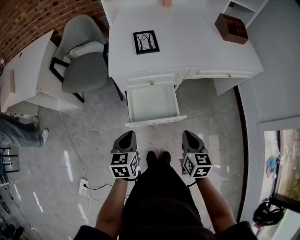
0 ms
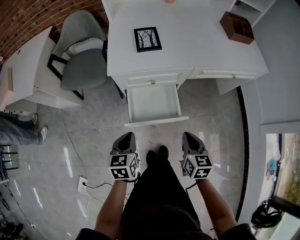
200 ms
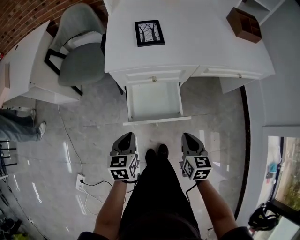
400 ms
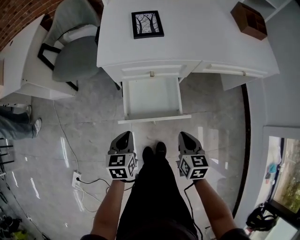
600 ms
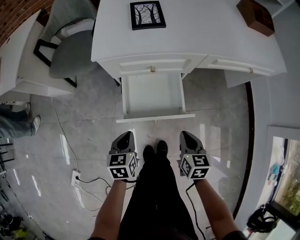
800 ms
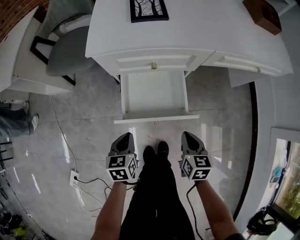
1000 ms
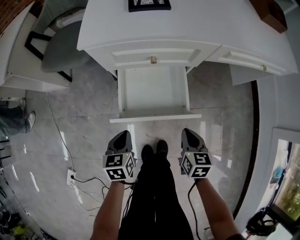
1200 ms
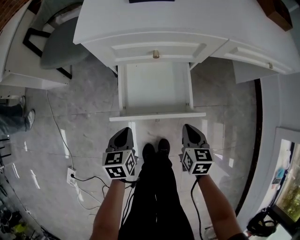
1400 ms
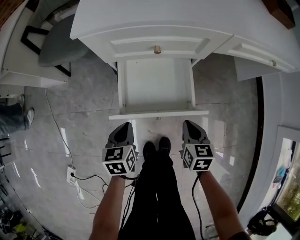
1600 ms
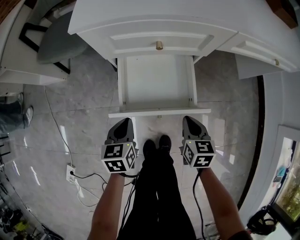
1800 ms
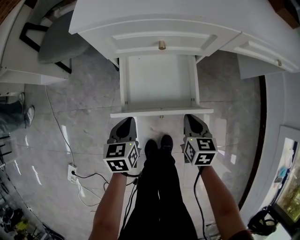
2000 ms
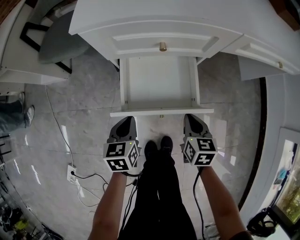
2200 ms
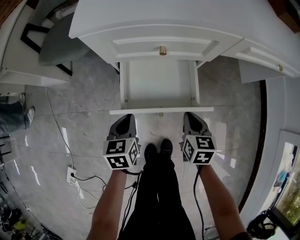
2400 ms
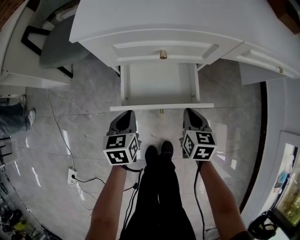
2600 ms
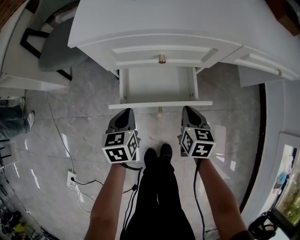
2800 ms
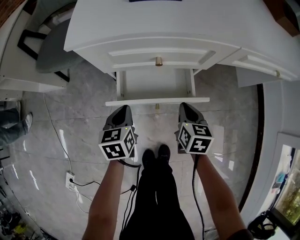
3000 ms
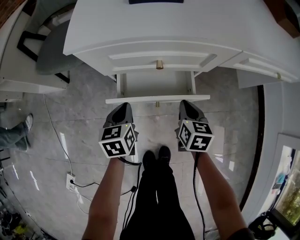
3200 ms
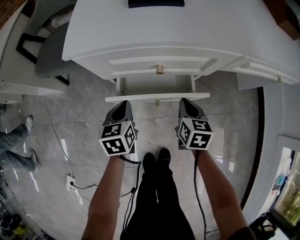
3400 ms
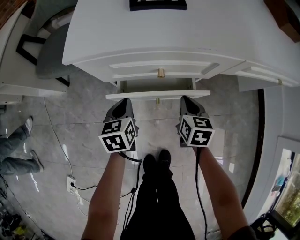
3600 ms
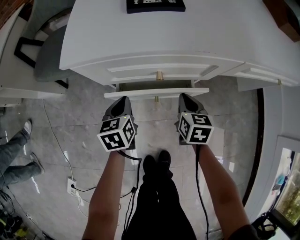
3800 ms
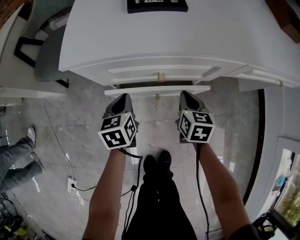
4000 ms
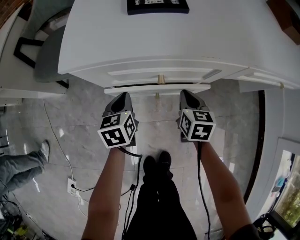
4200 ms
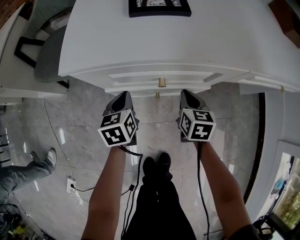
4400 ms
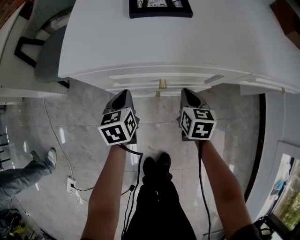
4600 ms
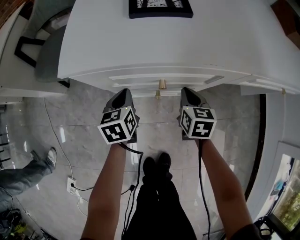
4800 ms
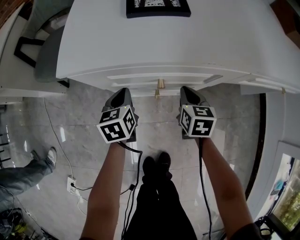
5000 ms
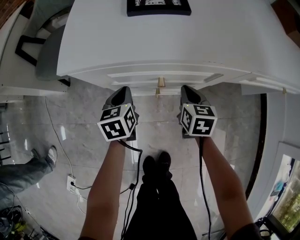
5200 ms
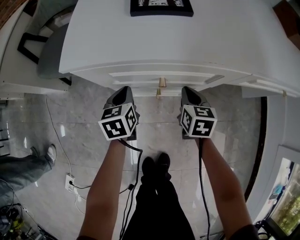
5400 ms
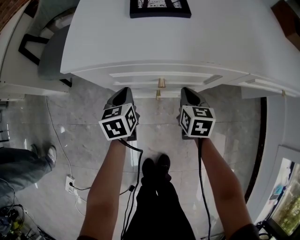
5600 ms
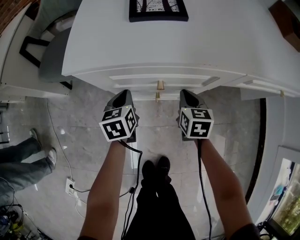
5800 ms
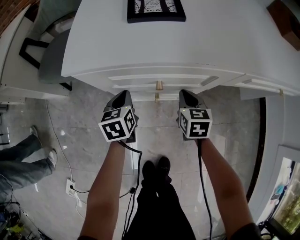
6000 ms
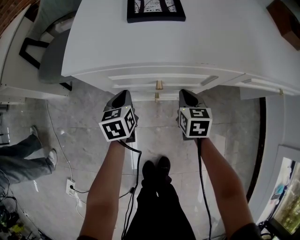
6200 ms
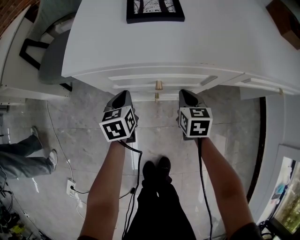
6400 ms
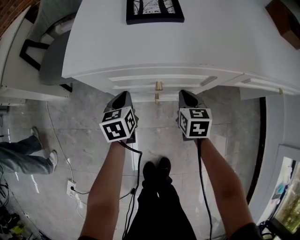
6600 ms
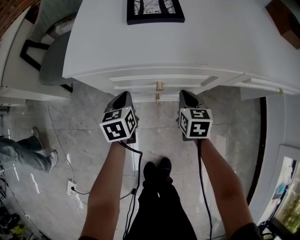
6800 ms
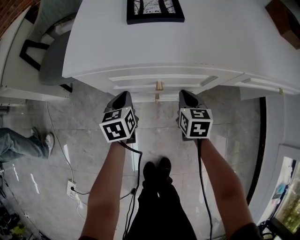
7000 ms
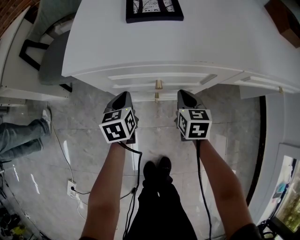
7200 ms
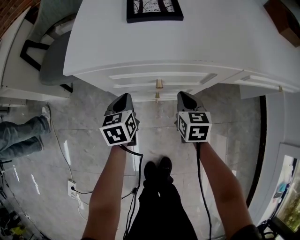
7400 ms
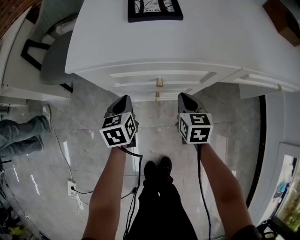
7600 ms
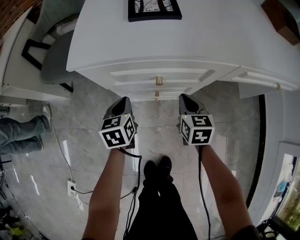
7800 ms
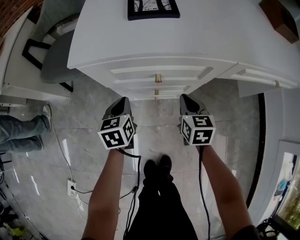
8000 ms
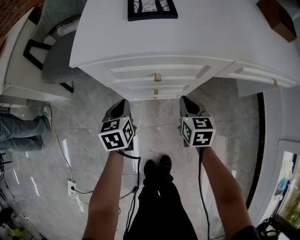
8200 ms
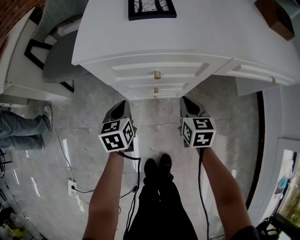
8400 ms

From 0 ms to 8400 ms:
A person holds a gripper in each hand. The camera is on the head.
From 0 ms to 1400 ms: Both grippers travel together downward, roughly 25 cm.
From 1400 ms to 2800 ms: The grippers both shift forward by approximately 10 cm.
From 2800 ms to 4200 ms: Both grippers travel together forward, approximately 10 cm.
From 4200 ms to 5600 ms: The grippers stay close to where they were, moving slightly.
From 5600 ms to 7000 ms: Neither gripper changes place.
From 7000 ms to 8400 ms: The two grippers go about 5 cm backward.

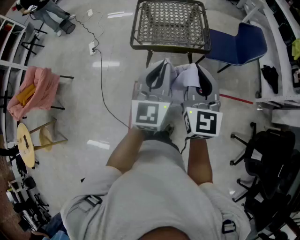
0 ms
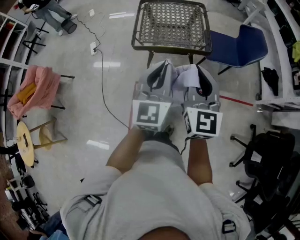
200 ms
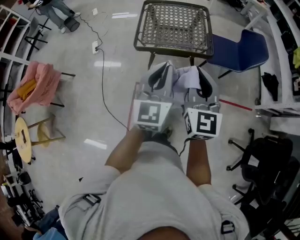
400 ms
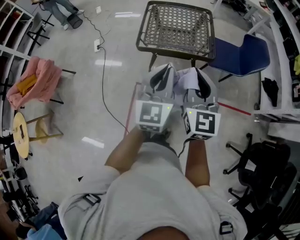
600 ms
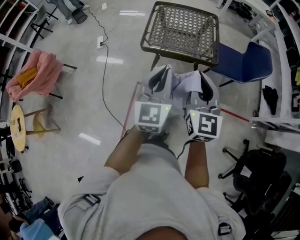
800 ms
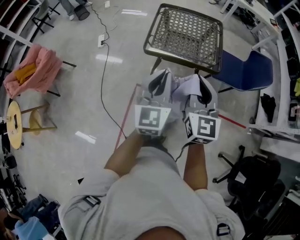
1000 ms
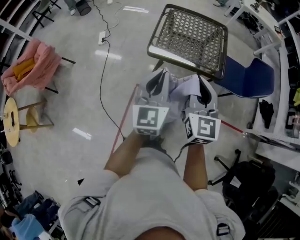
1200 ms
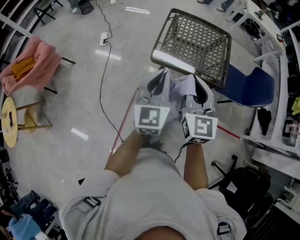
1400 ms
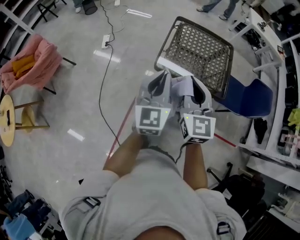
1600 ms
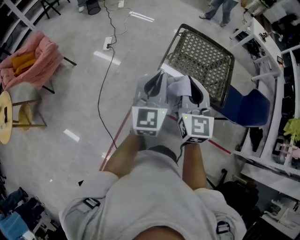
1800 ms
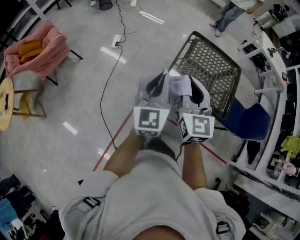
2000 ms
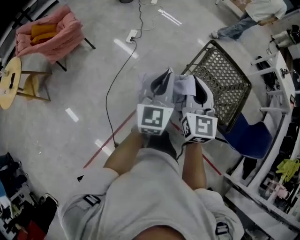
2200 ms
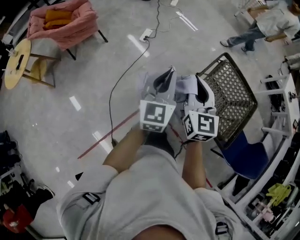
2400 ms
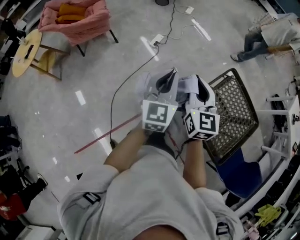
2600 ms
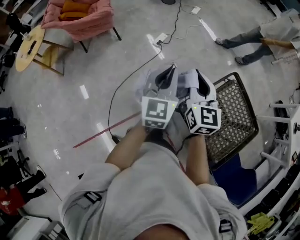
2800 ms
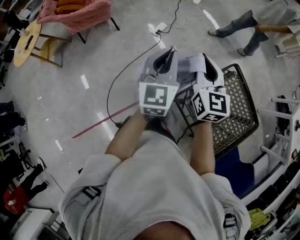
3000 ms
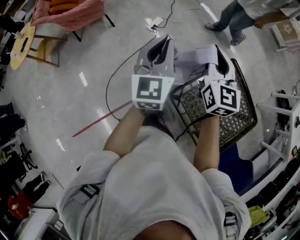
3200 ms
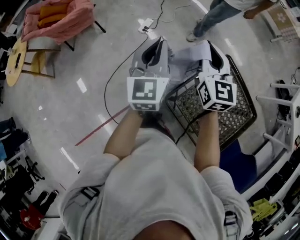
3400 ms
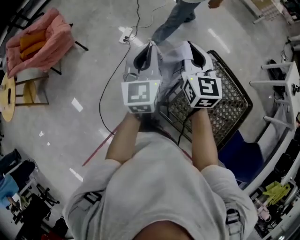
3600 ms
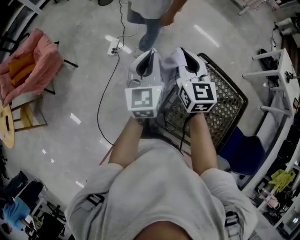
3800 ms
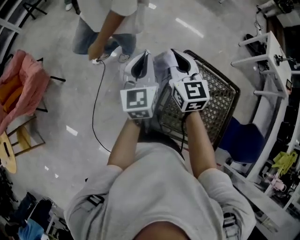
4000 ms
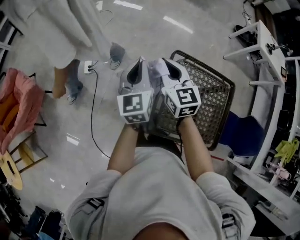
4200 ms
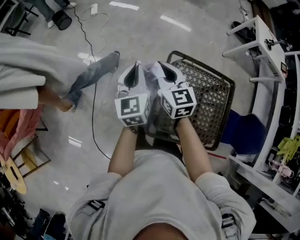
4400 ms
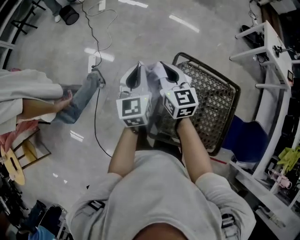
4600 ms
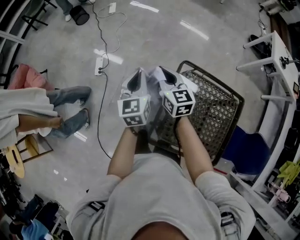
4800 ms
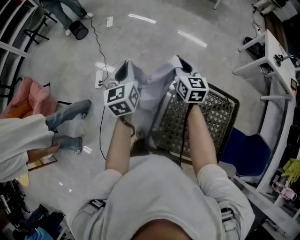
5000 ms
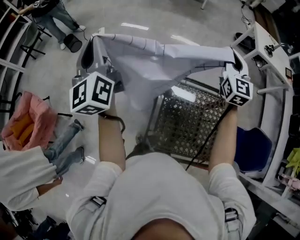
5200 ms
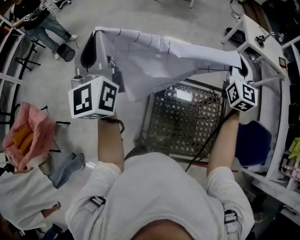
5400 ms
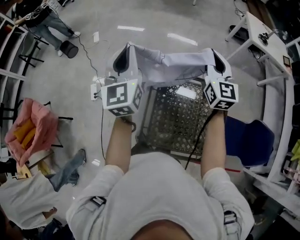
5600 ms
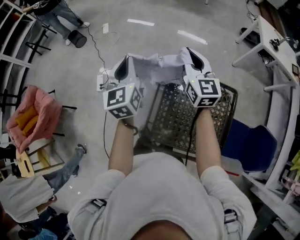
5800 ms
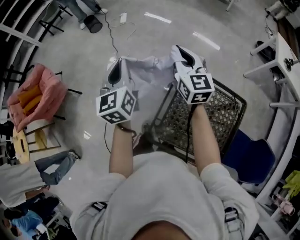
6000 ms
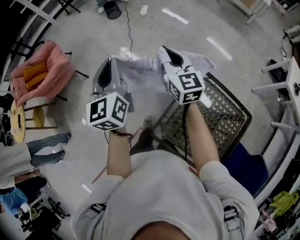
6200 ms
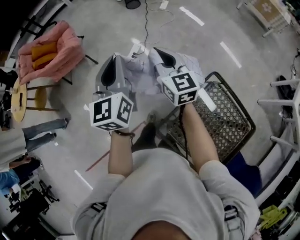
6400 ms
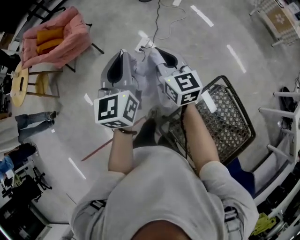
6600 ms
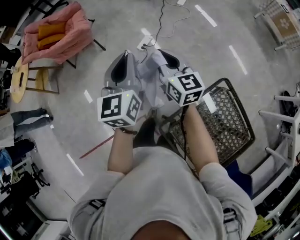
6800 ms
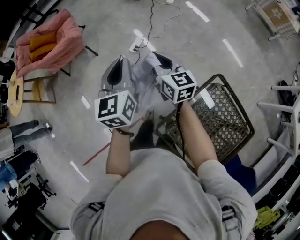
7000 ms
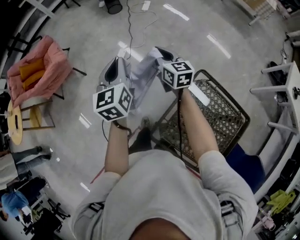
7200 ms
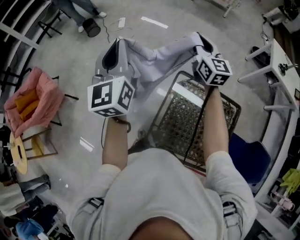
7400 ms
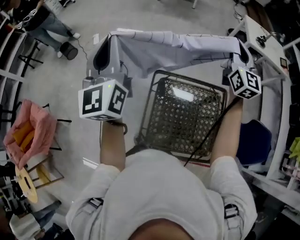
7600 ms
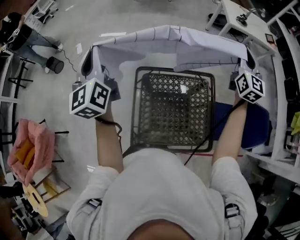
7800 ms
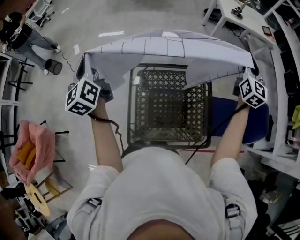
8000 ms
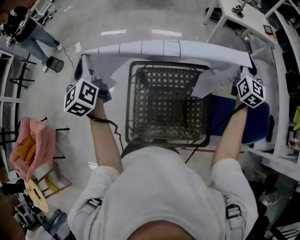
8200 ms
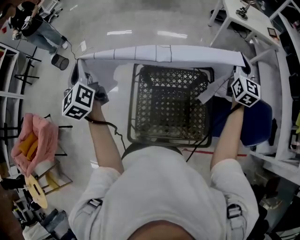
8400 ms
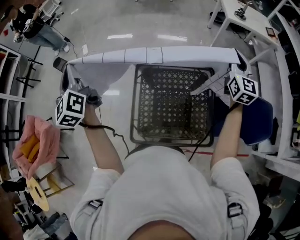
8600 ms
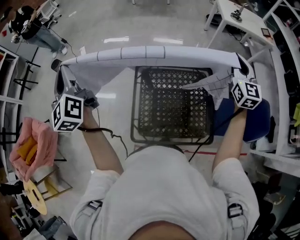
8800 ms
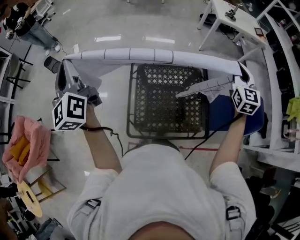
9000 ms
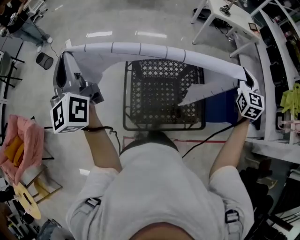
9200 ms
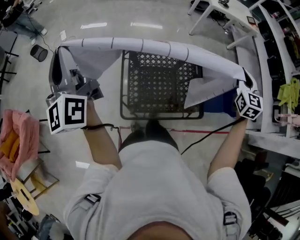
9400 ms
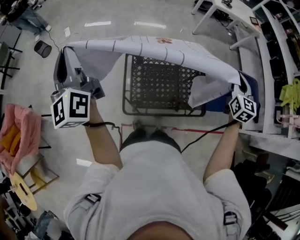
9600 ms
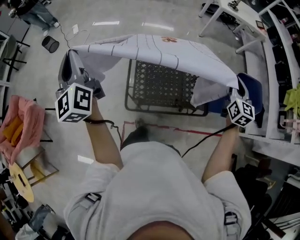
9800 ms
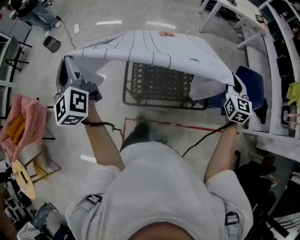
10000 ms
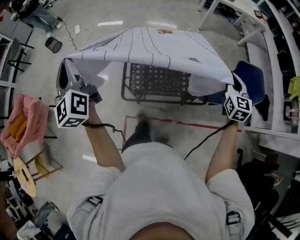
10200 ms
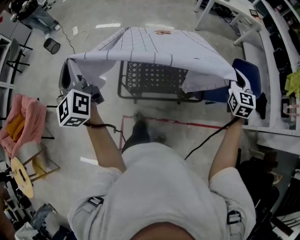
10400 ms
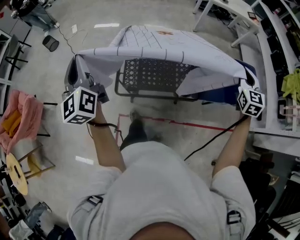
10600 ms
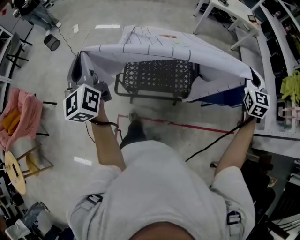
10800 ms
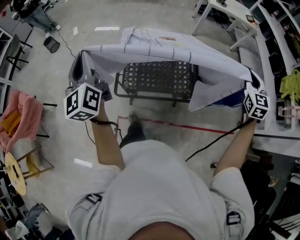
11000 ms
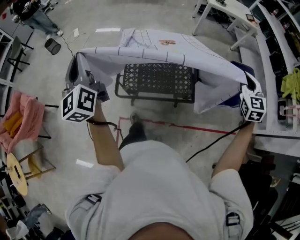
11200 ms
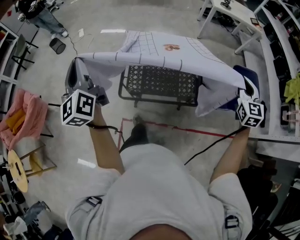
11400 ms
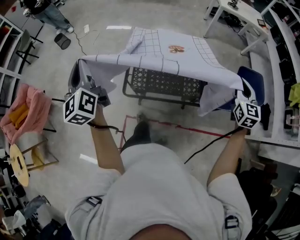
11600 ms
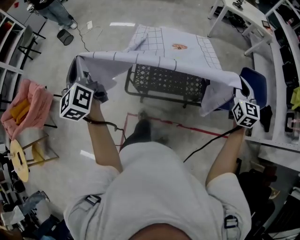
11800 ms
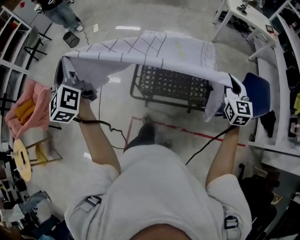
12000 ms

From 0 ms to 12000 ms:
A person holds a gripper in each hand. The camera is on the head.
From 0 ms to 1600 ms: The two grippers go approximately 25 cm to the left and forward.
From 1600 ms to 3000 ms: The right gripper moves about 35 cm, and rotates about 40 degrees. Meanwhile the left gripper moves roughly 30 cm, and changes its angle by roughly 40 degrees.
From 3000 ms to 4400 ms: The left gripper shifts by roughly 35 cm, and changes its angle by approximately 30 degrees. The right gripper changes place by roughly 30 cm, and changes its angle by about 30 degrees.
From 4400 ms to 6000 ms: The left gripper goes up and down, roughly 35 cm each way, reversing 2 times. The right gripper is displaced upward by approximately 10 cm, and moves approximately 40 cm to the right and comes back.
From 6000 ms to 7600 ms: The left gripper is displaced upward by about 15 cm, and changes its angle by approximately 30 degrees. The right gripper moves about 35 cm, and changes its angle by roughly 30 degrees.
From 7600 ms to 9000 ms: The left gripper goes roughly 15 cm backward, while the right gripper moves backward and to the right, roughly 30 cm, and swivels roughly 30 degrees.
From 9000 ms to 10400 ms: The grippers both shift backward by roughly 25 cm.
From 10400 ms to 12000 ms: Both grippers move to the left, some 10 cm.

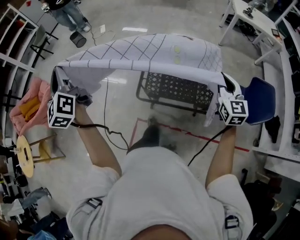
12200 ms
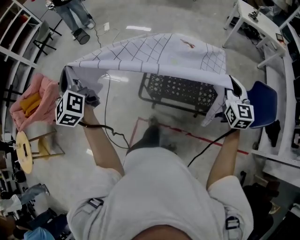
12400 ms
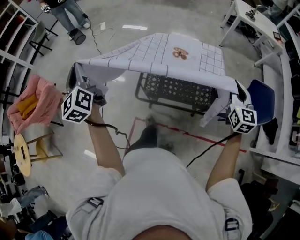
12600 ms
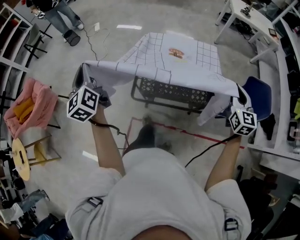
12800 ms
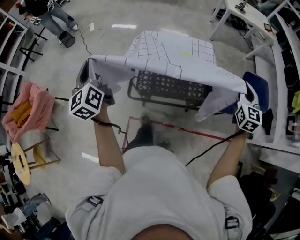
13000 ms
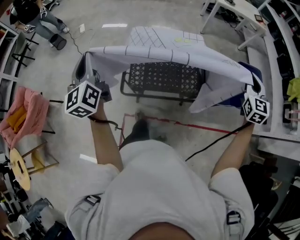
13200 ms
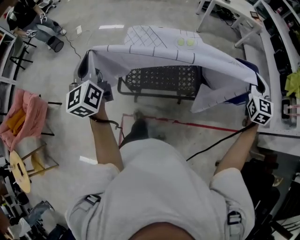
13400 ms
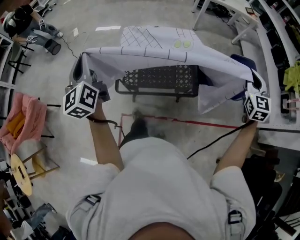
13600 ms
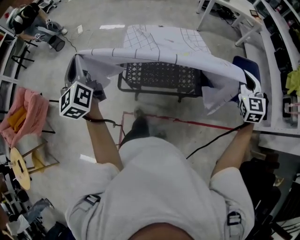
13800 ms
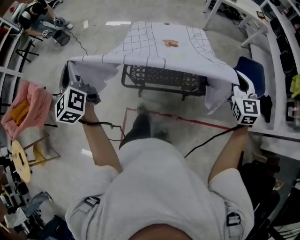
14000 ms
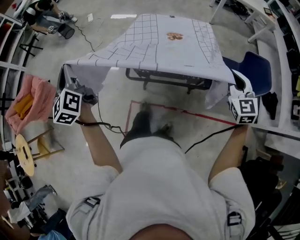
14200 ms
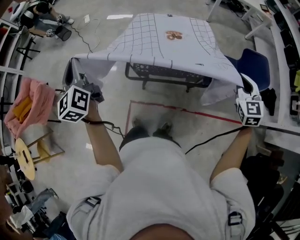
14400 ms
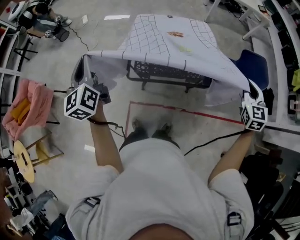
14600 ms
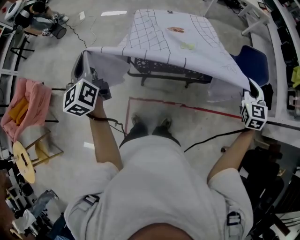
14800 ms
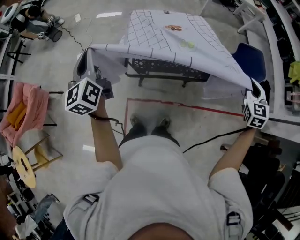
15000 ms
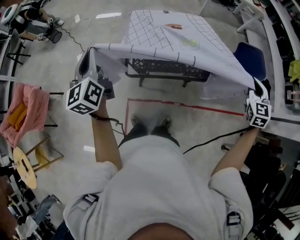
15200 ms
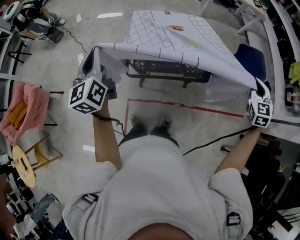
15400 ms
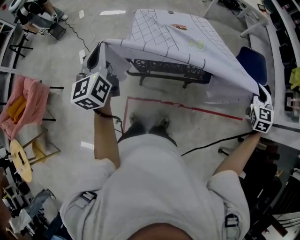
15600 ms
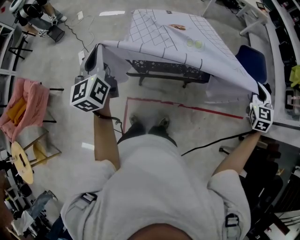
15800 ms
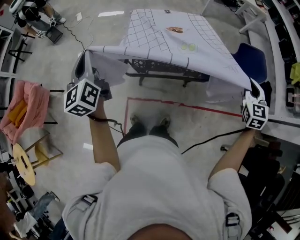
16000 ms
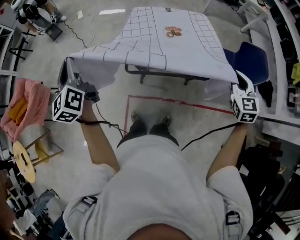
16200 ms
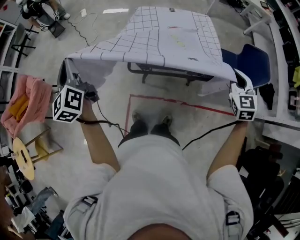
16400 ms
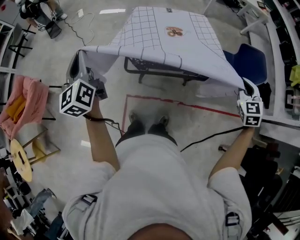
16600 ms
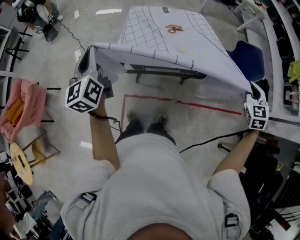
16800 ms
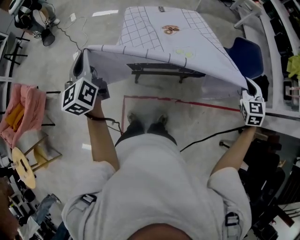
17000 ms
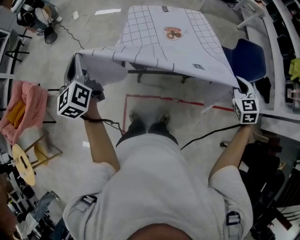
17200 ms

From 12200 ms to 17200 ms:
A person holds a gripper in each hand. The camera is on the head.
From 12200 ms to 13800 ms: The right gripper ends up about 20 cm from where it was, and rotates roughly 20 degrees. The left gripper changes place by some 15 cm.
From 13800 ms to 15600 ms: The left gripper goes to the left and returns, roughly 10 cm each way. Meanwhile the right gripper travels backward by roughly 10 cm, and travels to the left and back again, some 10 cm each way.
From 15600 ms to 17200 ms: The left gripper goes left and right, approximately 10 cm each way, reversing 2 times, while the right gripper goes left and right, roughly 10 cm each way, reversing 2 times.
